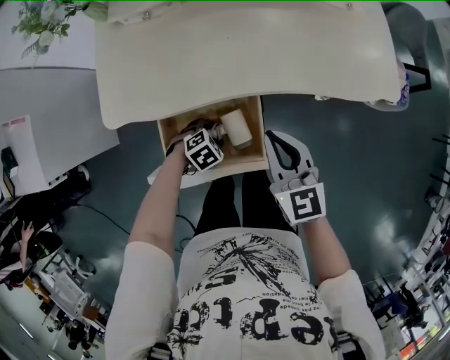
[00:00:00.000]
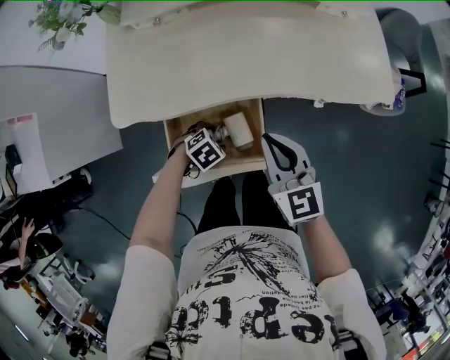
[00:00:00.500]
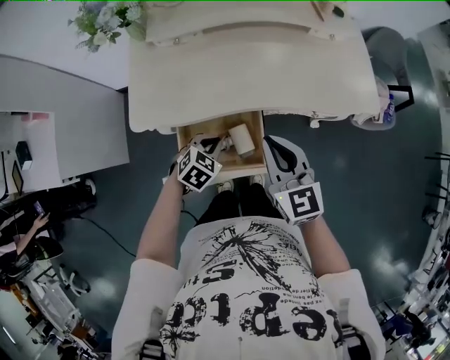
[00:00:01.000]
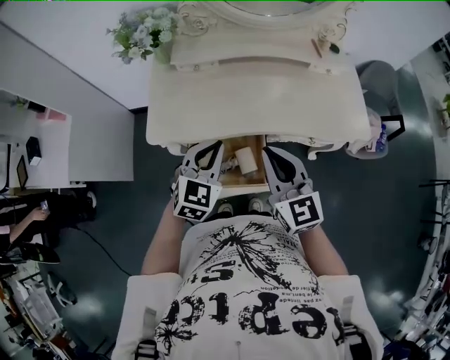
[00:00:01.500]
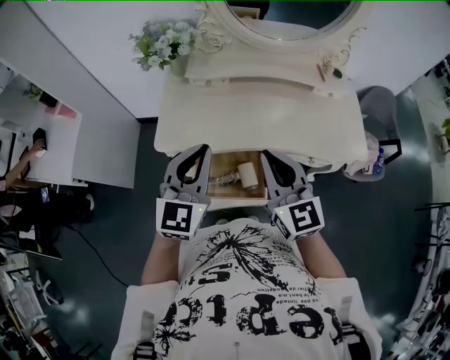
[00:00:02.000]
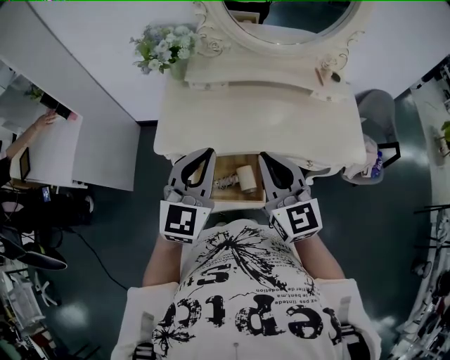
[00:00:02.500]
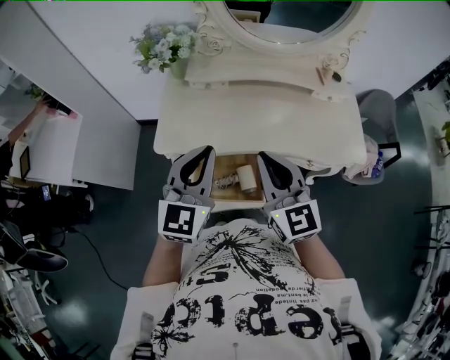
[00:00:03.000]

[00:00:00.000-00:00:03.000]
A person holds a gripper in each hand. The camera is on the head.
00:00:00.000 to 00:00:01.500: The left gripper shifts some 35 cm upward, tilts its fingers about 50 degrees upward, and closes up. The right gripper travels upward by roughly 15 cm.
00:00:01.500 to 00:00:03.000: The left gripper moves upward, roughly 10 cm, and rotates some 20 degrees, while the right gripper moves upward, some 5 cm.

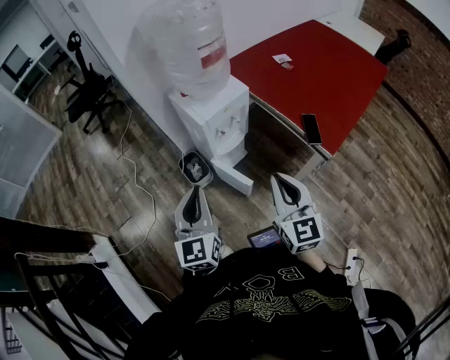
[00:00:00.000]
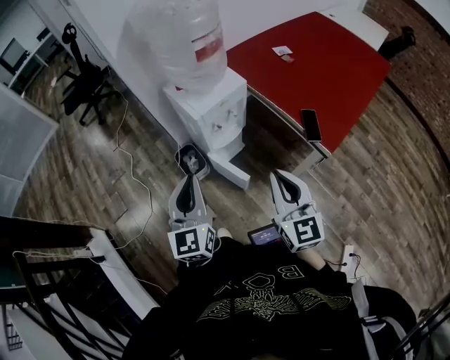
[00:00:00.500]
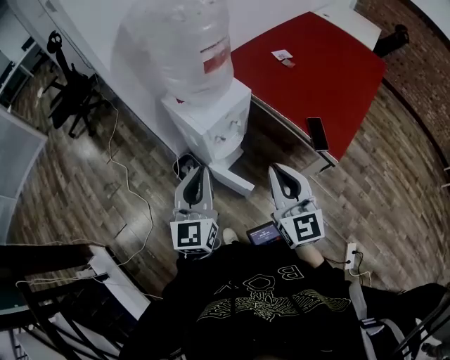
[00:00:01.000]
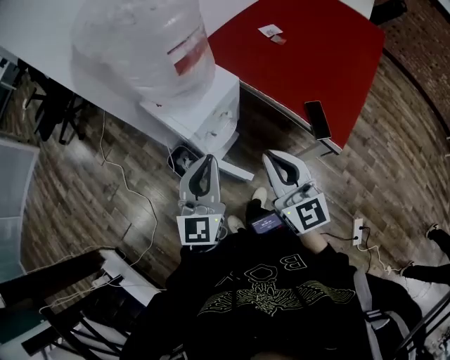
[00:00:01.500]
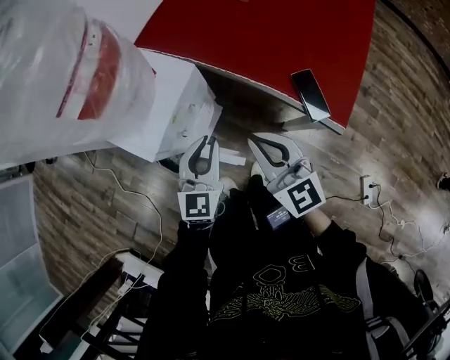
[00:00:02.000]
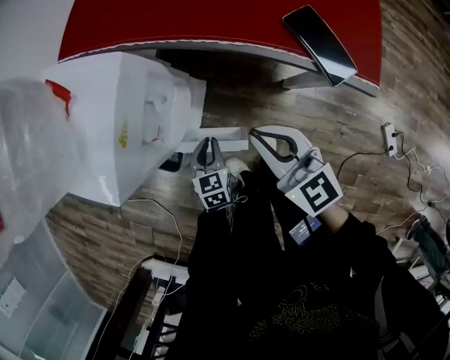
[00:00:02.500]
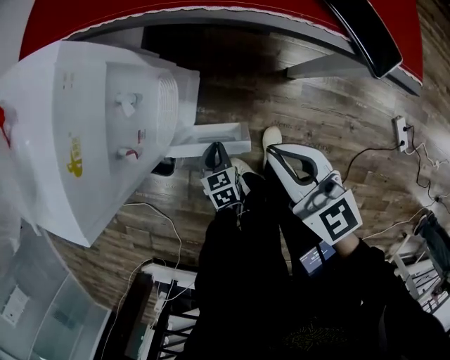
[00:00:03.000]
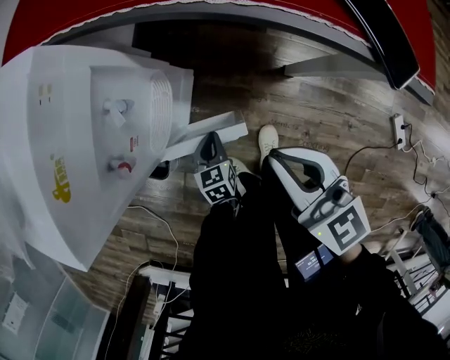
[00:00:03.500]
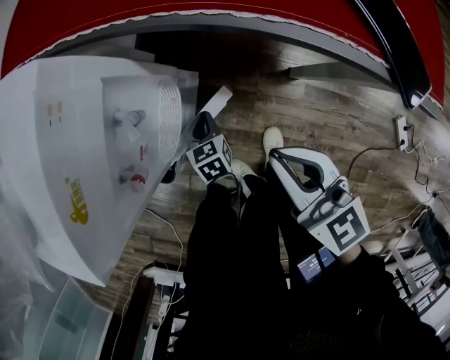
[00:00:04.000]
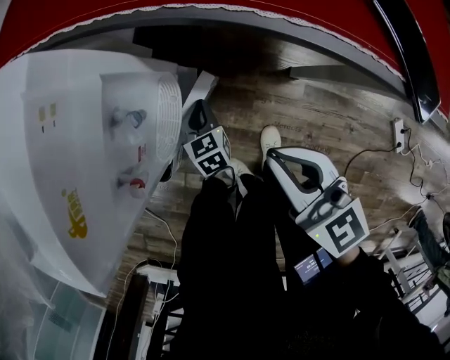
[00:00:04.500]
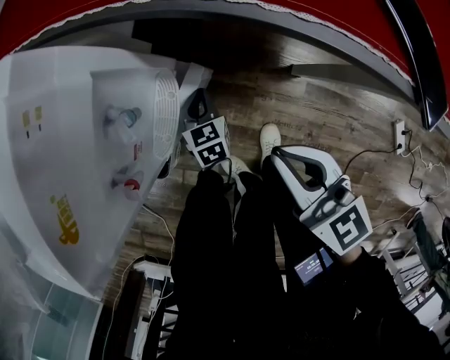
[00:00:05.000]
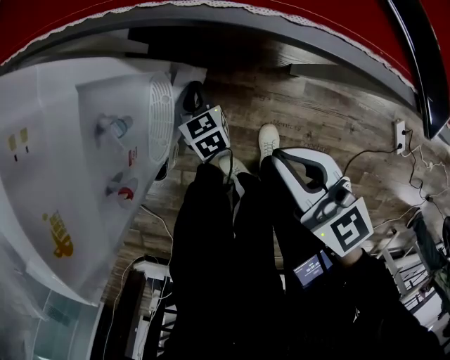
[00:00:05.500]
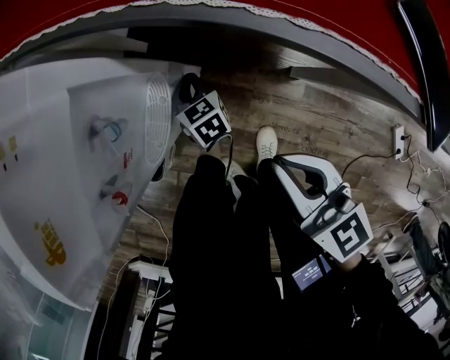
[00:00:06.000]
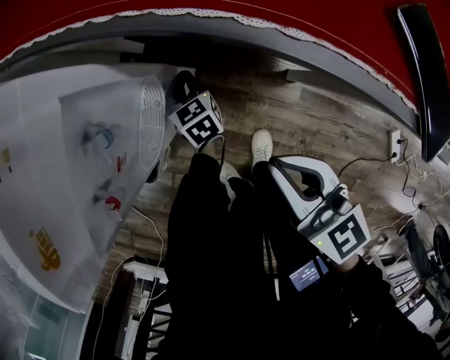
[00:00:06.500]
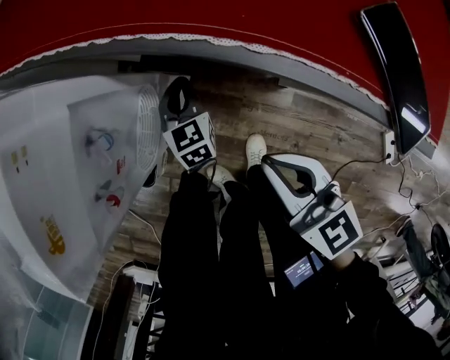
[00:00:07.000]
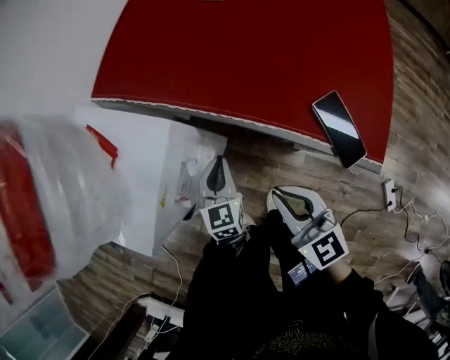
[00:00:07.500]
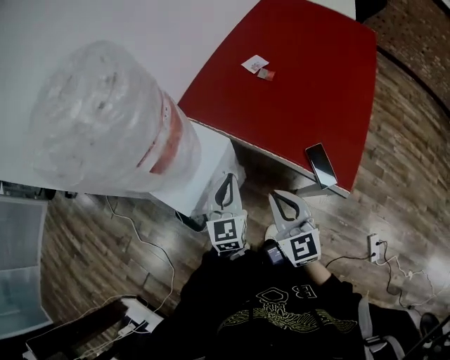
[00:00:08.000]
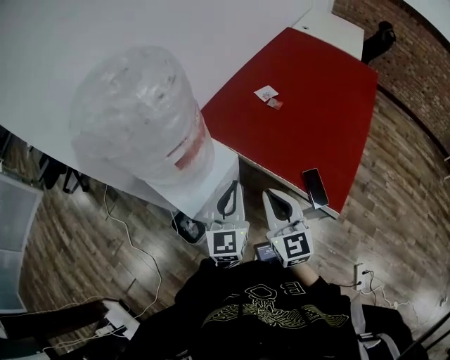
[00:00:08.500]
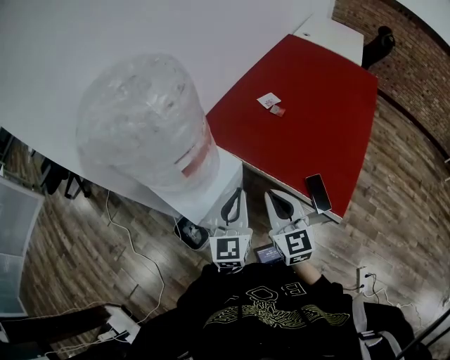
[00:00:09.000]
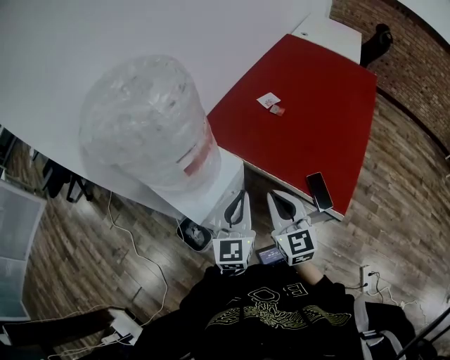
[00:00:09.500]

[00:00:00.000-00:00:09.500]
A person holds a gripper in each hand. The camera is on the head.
00:00:00.000 to 00:00:02.000: The right gripper heads forward and downward, covering some 25 cm. The left gripper travels forward, downward and to the right by roughly 40 cm, and rotates about 40 degrees.
00:00:02.000 to 00:00:04.000: The right gripper travels downward by about 25 cm, and swivels about 20 degrees. Meanwhile the left gripper is displaced downward by approximately 50 cm, and angles its fingers downward, by approximately 30 degrees.
00:00:04.000 to 00:00:05.500: The left gripper travels forward by some 5 cm.
00:00:05.500 to 00:00:07.500: The left gripper heads upward, covering approximately 25 cm. The right gripper travels upward by approximately 15 cm.
00:00:07.500 to 00:00:09.500: Both grippers travel together upward, approximately 30 cm. The left gripper changes its angle by about 20 degrees.

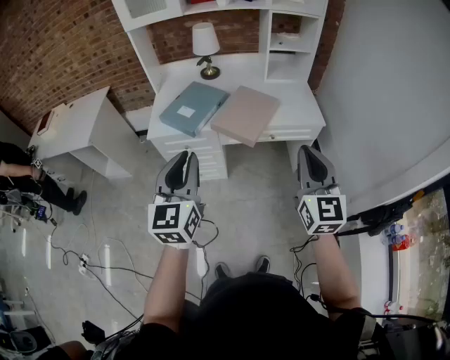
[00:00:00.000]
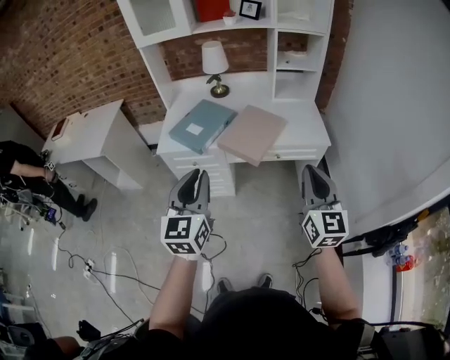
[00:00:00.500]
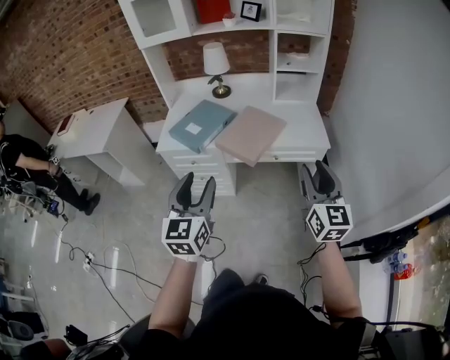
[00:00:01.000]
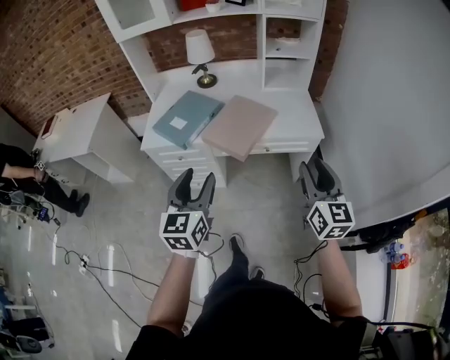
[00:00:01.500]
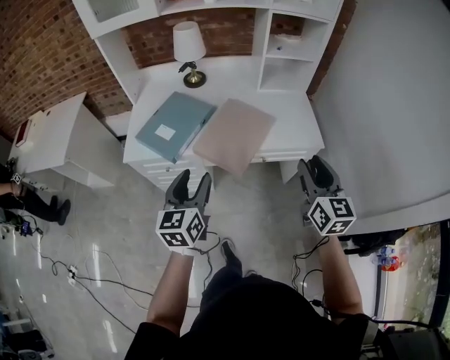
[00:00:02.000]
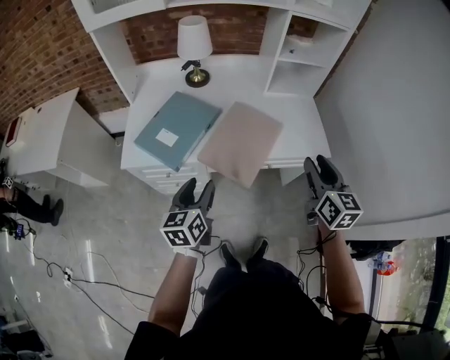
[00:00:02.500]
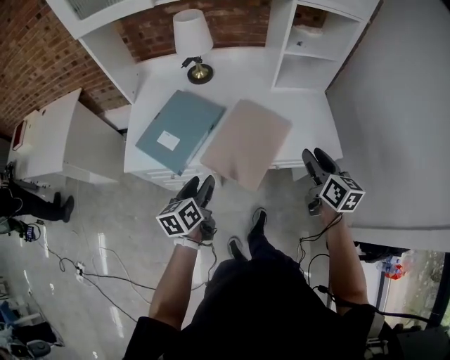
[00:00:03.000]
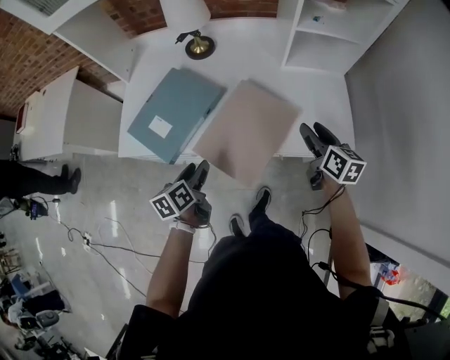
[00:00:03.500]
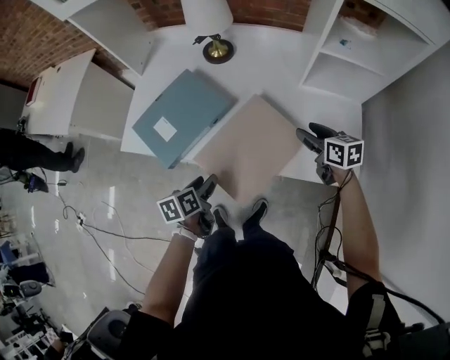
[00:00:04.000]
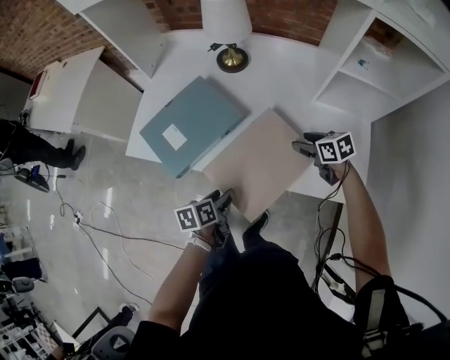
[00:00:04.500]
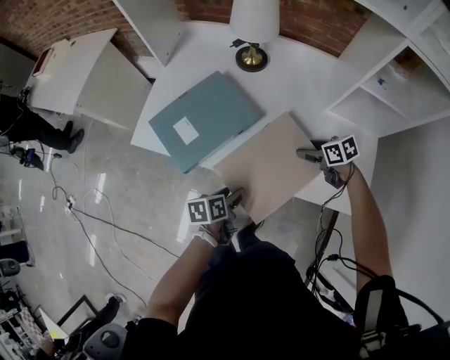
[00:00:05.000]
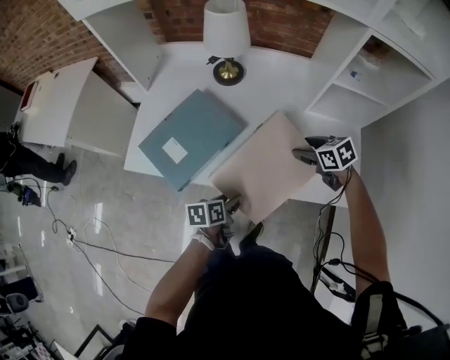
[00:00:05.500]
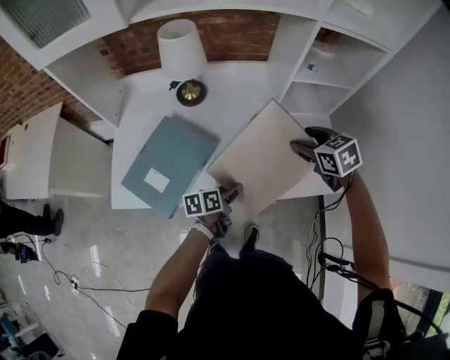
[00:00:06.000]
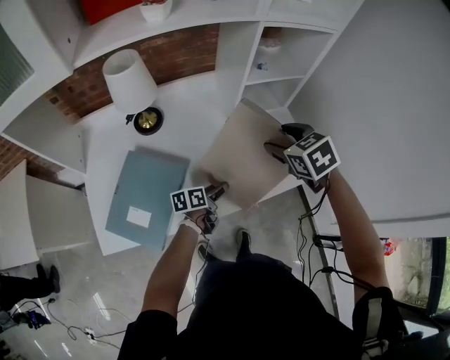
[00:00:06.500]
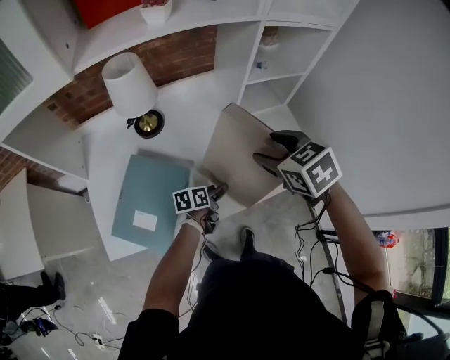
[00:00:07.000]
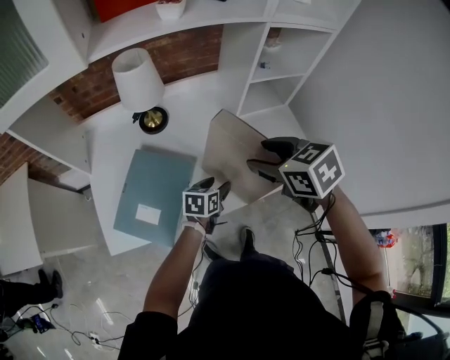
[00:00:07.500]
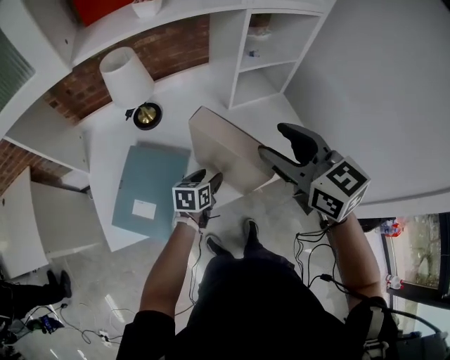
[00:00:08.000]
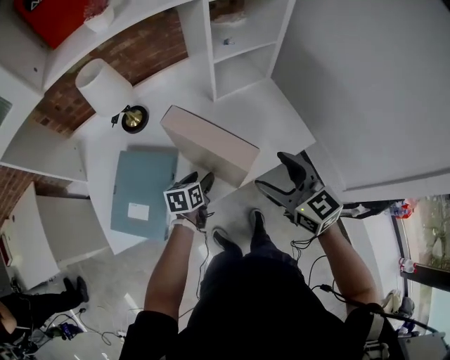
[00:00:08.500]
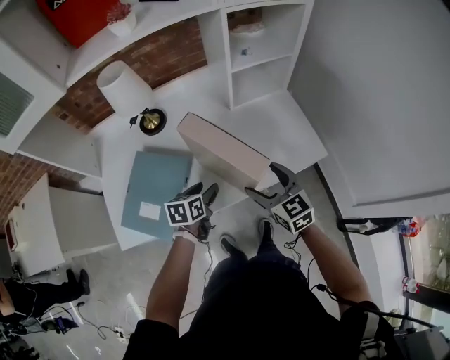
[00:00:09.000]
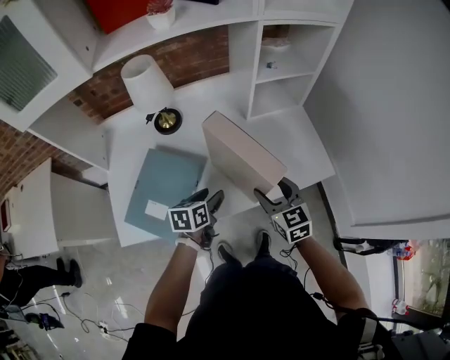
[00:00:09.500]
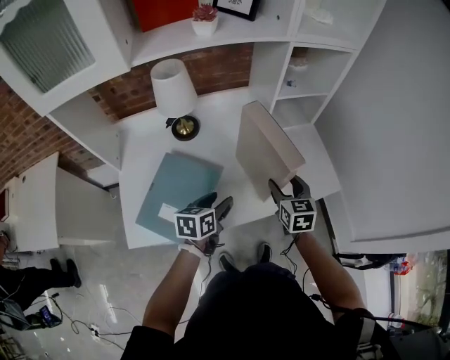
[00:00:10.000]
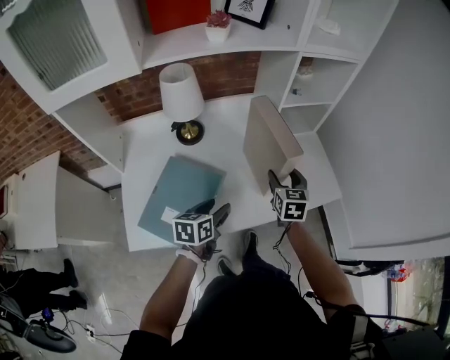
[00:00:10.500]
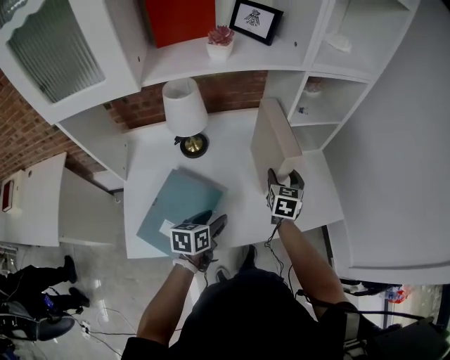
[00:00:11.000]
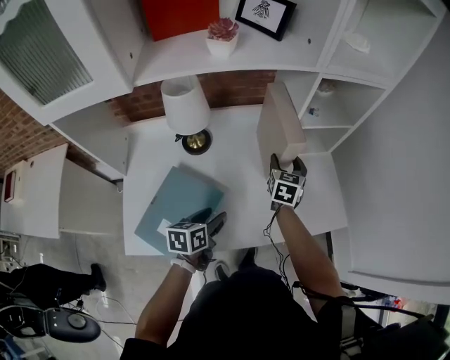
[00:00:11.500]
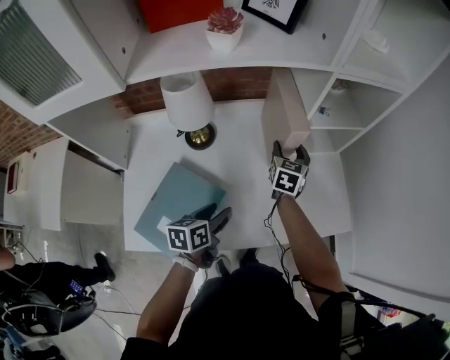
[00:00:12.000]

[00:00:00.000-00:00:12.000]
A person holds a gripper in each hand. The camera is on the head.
00:00:00.000 to 00:00:02.000: The left gripper travels forward and downward by approximately 25 cm, and opens its fingers, while the right gripper heads forward, downward and to the right, covering approximately 20 cm, and opens its fingers.
00:00:02.000 to 00:00:04.000: The right gripper moves forward and downward, about 40 cm, and rotates some 50 degrees; the left gripper goes about 30 cm downward and forward, and tilts its fingers approximately 30 degrees downward.
00:00:04.000 to 00:00:06.000: The left gripper changes place by approximately 15 cm, and turns by some 30 degrees. Meanwhile the right gripper moves upward, about 10 cm, and changes its angle by some 20 degrees.
00:00:06.000 to 00:00:08.000: The right gripper is displaced upward and backward by some 20 cm, and tips its fingers upward by some 30 degrees. Meanwhile the left gripper changes place by some 5 cm, and turns by about 40 degrees.
00:00:08.000 to 00:00:10.000: The left gripper heads upward and to the left, covering approximately 10 cm; the right gripper travels downward by approximately 20 cm, and swivels approximately 20 degrees.
00:00:10.000 to 00:00:12.000: The left gripper goes approximately 5 cm forward. Meanwhile the right gripper goes roughly 25 cm forward.

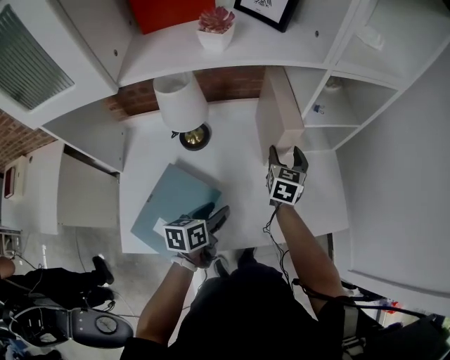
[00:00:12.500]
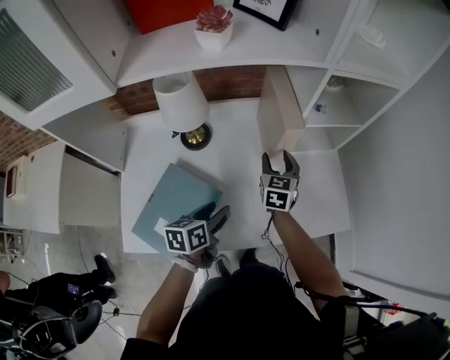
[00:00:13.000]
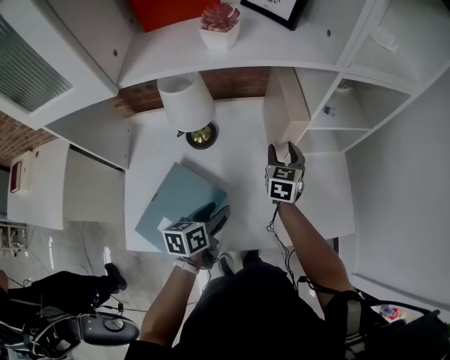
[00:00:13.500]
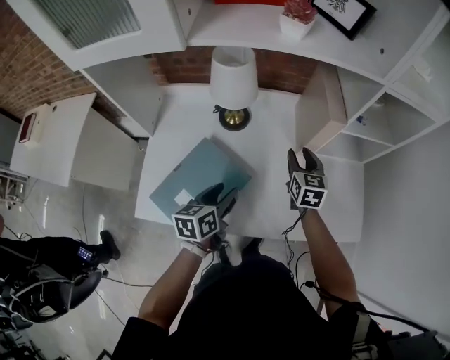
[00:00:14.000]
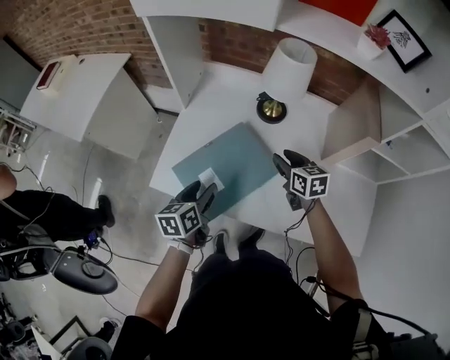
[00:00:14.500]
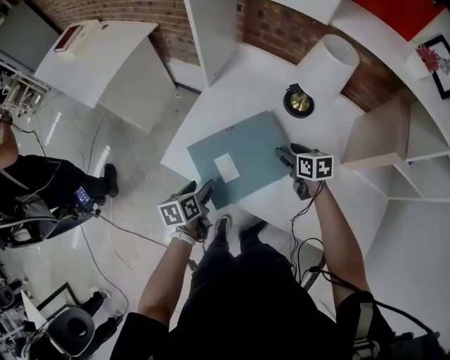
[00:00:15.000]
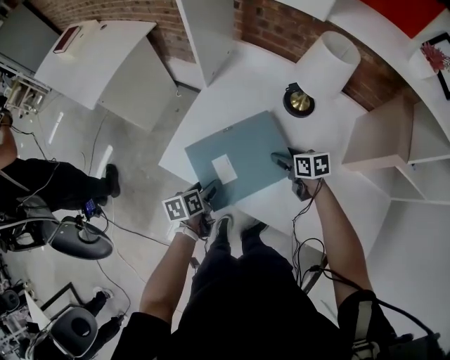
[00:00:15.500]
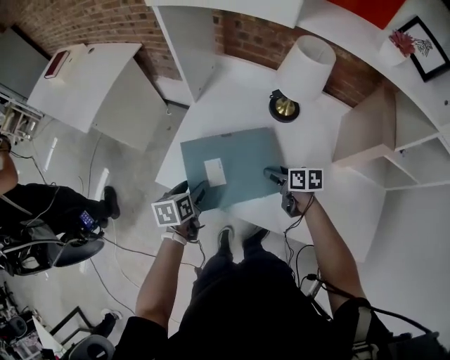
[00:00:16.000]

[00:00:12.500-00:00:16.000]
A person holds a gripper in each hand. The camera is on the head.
00:00:12.500 to 00:00:14.500: The left gripper changes place by approximately 25 cm, and swivels some 30 degrees. Meanwhile the right gripper ends up approximately 30 cm from where it was, turns by approximately 60 degrees, and closes its fingers.
00:00:14.500 to 00:00:16.000: The left gripper shifts roughly 10 cm to the left and downward. Meanwhile the right gripper goes roughly 10 cm downward, and rotates approximately 30 degrees.
